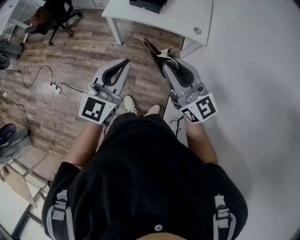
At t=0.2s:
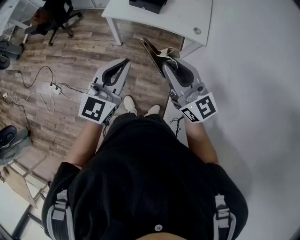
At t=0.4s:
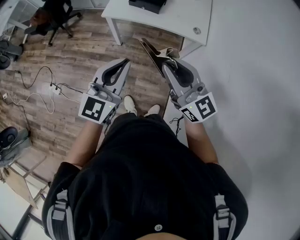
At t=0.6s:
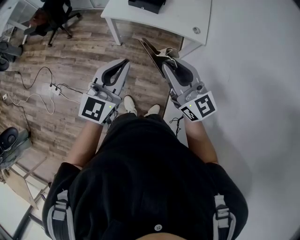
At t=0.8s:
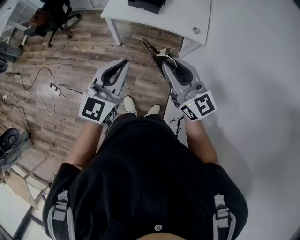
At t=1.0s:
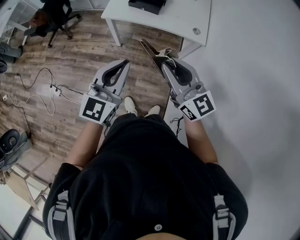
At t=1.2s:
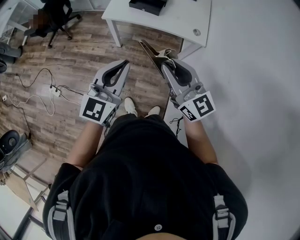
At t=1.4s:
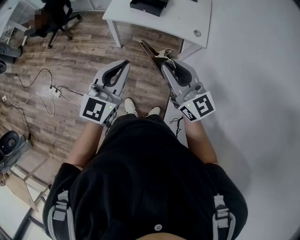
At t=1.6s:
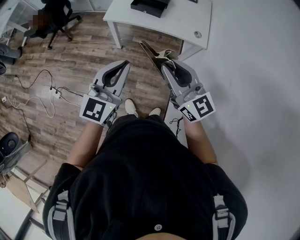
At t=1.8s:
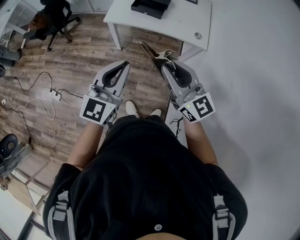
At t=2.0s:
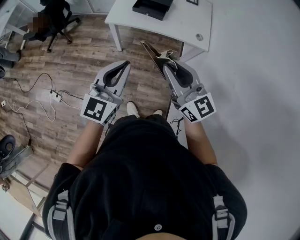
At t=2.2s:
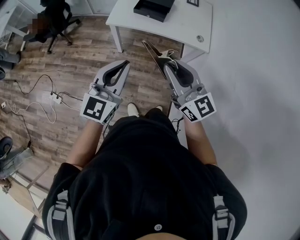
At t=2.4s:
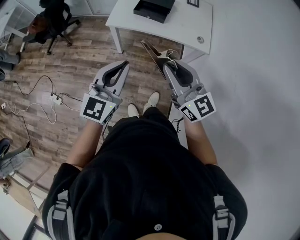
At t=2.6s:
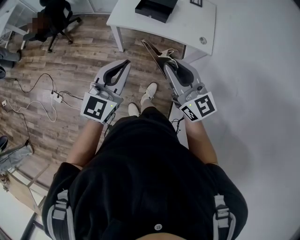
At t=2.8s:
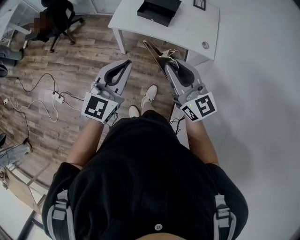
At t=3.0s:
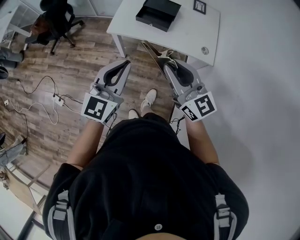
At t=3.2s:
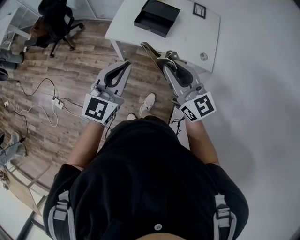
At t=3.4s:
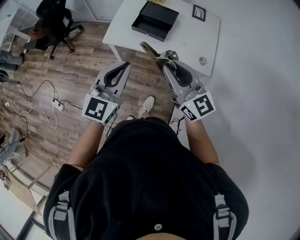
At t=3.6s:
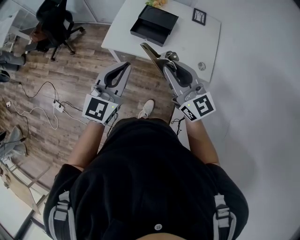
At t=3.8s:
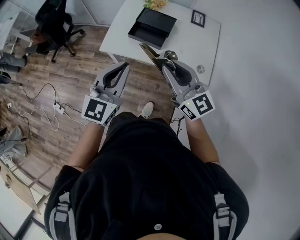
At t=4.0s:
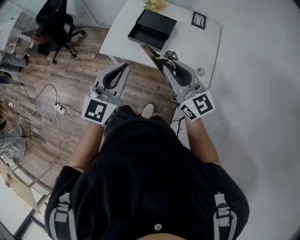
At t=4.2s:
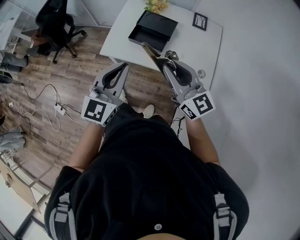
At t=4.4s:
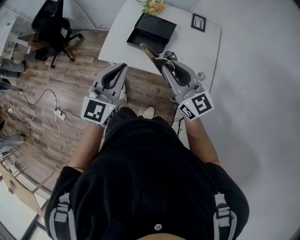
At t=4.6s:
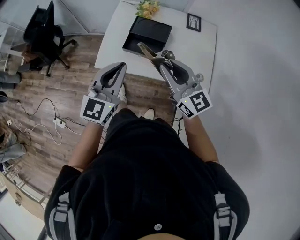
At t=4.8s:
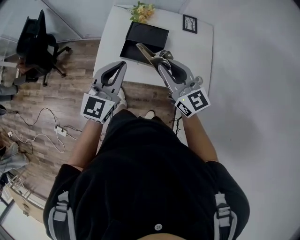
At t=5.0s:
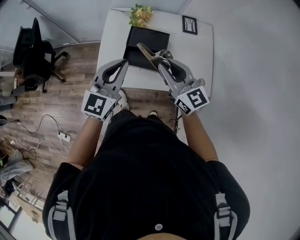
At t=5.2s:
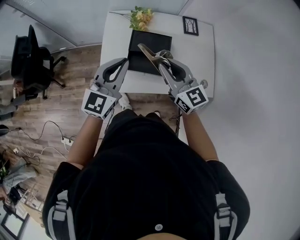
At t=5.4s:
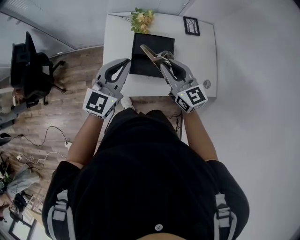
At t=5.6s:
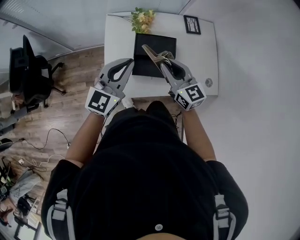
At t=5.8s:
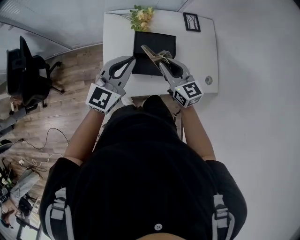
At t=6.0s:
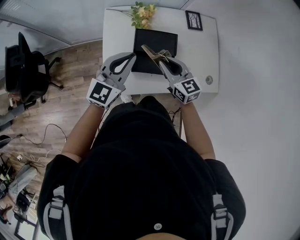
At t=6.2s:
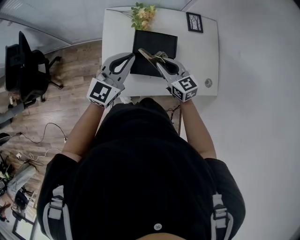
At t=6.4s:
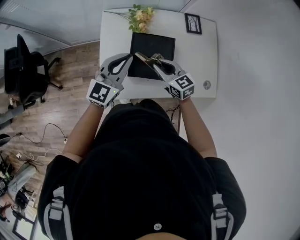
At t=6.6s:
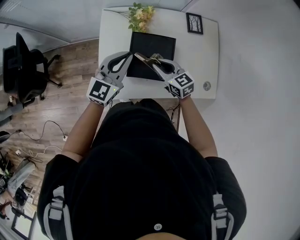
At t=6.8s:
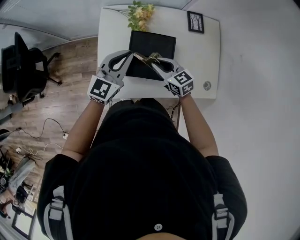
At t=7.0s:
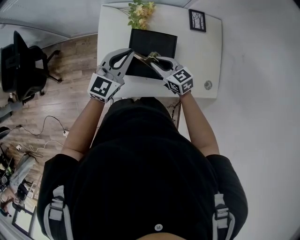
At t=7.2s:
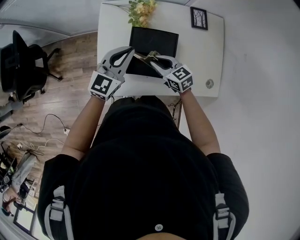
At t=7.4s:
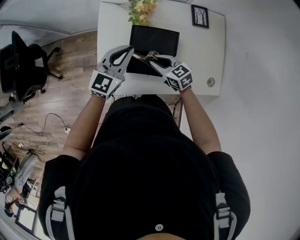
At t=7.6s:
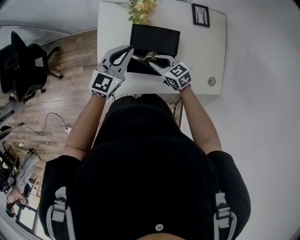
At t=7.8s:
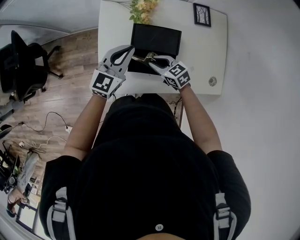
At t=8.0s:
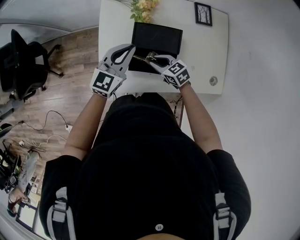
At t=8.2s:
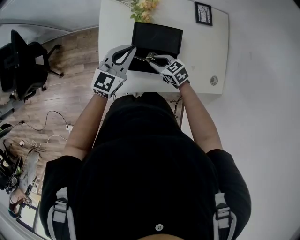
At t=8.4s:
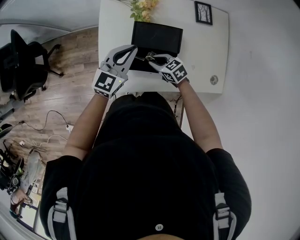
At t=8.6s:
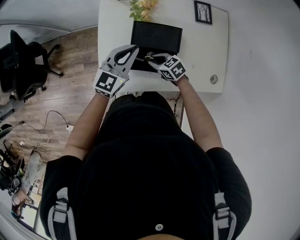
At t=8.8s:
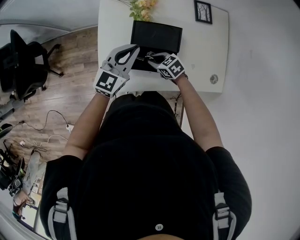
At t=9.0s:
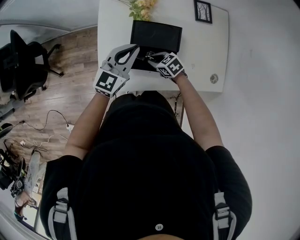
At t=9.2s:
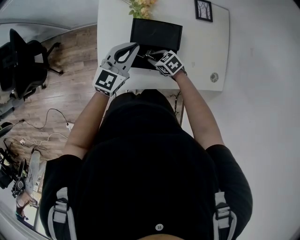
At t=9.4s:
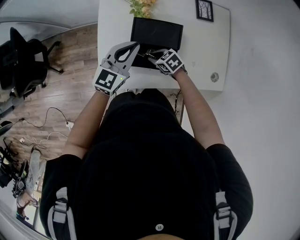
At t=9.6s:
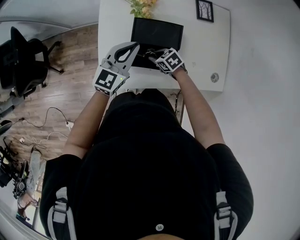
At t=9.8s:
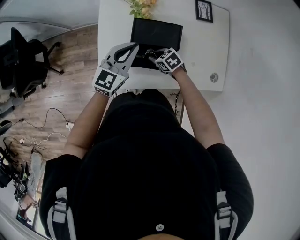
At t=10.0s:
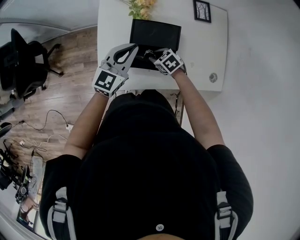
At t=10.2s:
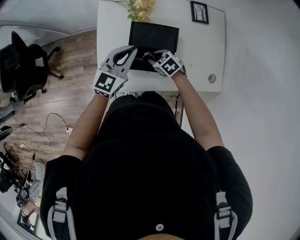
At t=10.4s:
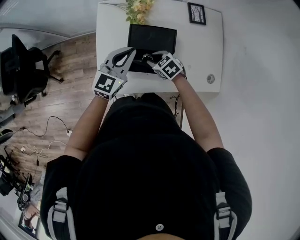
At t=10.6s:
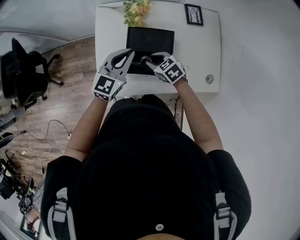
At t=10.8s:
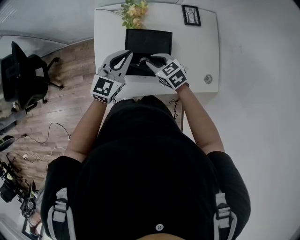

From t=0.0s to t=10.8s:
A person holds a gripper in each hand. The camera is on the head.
From t=0.0s to t=1.6s: The grippers stay close to where they were, moving slightly.
From t=1.6s to t=3.0s: The two grippers go roughly 15 cm forward.
From t=3.0s to t=4.6s: Both grippers move forward, about 20 cm.
From t=4.6s to t=6.2s: The right gripper travels forward, downward and to the left by some 30 cm, and turns by some 30 degrees; the left gripper travels forward by about 25 cm, and turns by roughly 20 degrees.
From t=6.2s to t=7.8s: The right gripper travels downward by approximately 15 cm, and rotates roughly 20 degrees, while the left gripper goes roughly 10 cm downward.
From t=7.8s to t=9.2s: The right gripper shifts about 5 cm downward.
From t=9.2s to t=10.8s: The right gripper is displaced upward by some 15 cm.

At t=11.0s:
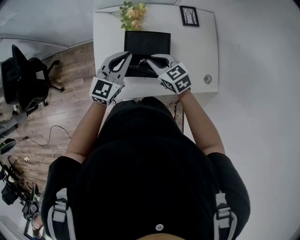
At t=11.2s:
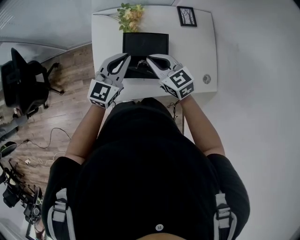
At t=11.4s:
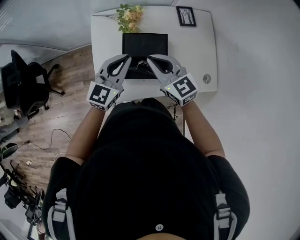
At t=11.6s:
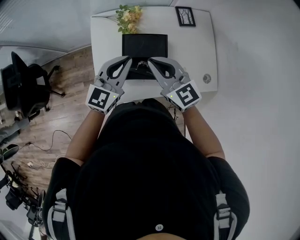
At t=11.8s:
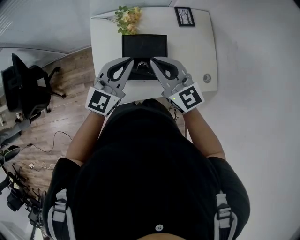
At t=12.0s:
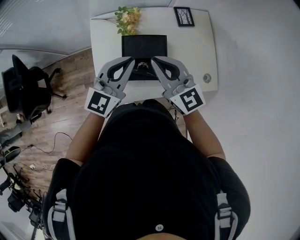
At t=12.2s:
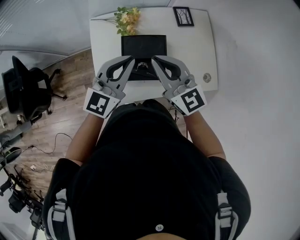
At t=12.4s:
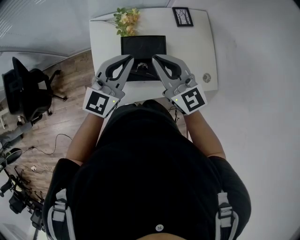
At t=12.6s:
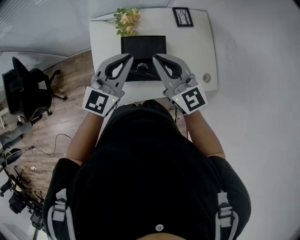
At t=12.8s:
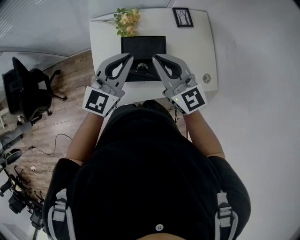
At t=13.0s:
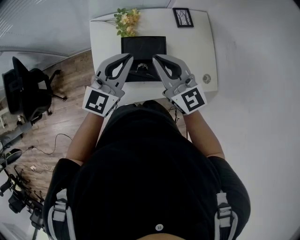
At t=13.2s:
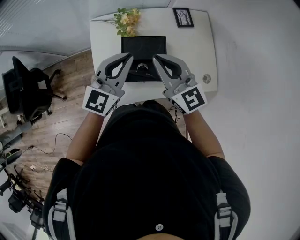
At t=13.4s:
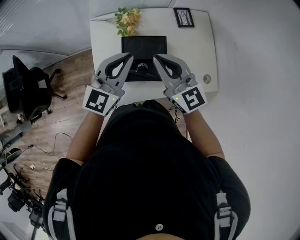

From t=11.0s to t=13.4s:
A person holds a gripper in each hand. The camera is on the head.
From t=11.0s to t=12.2s: The left gripper goes some 10 cm upward; the right gripper shifts approximately 20 cm upward, and angles its fingers upward, by about 30 degrees.
From t=12.2s to t=13.4s: There are only small adjustments of the grippers.

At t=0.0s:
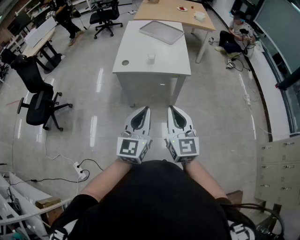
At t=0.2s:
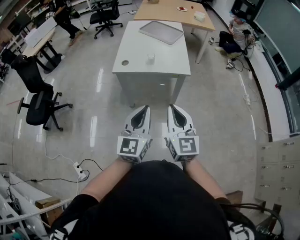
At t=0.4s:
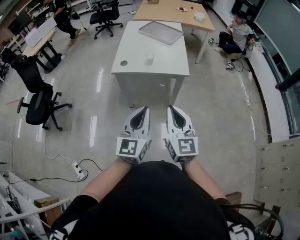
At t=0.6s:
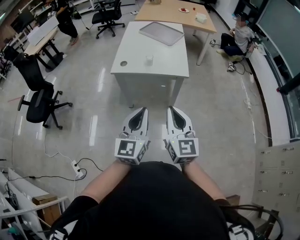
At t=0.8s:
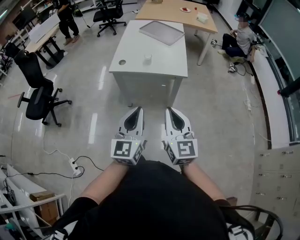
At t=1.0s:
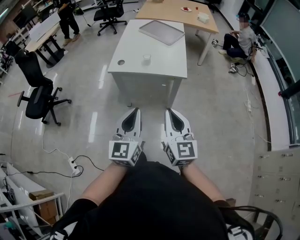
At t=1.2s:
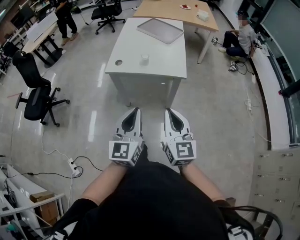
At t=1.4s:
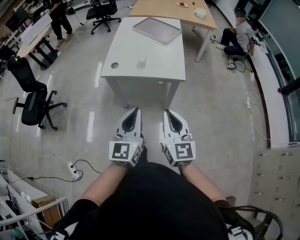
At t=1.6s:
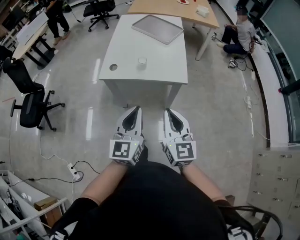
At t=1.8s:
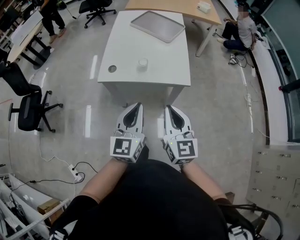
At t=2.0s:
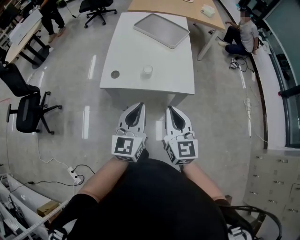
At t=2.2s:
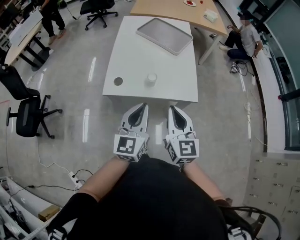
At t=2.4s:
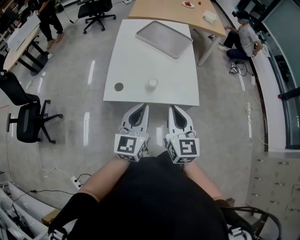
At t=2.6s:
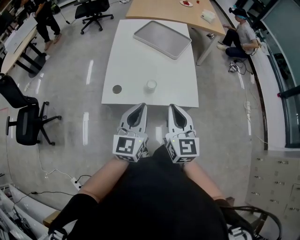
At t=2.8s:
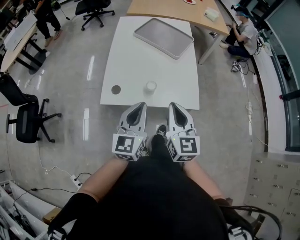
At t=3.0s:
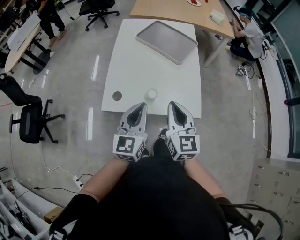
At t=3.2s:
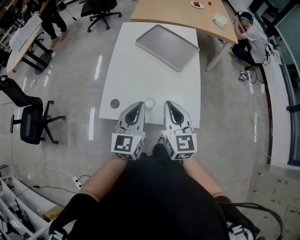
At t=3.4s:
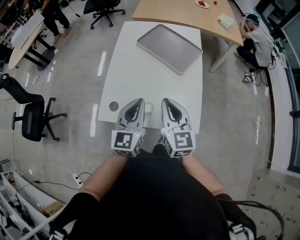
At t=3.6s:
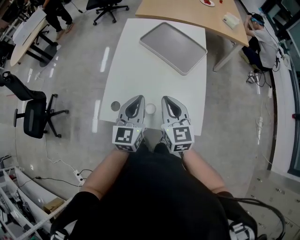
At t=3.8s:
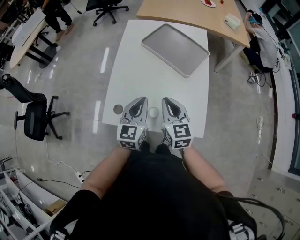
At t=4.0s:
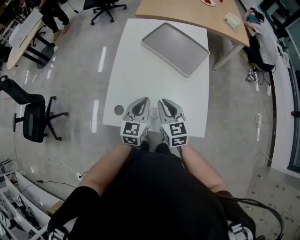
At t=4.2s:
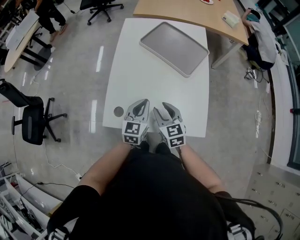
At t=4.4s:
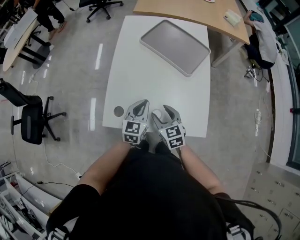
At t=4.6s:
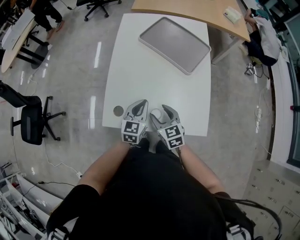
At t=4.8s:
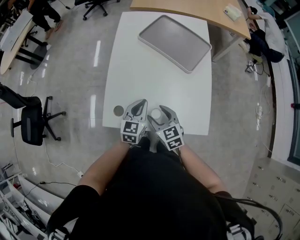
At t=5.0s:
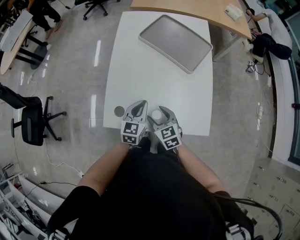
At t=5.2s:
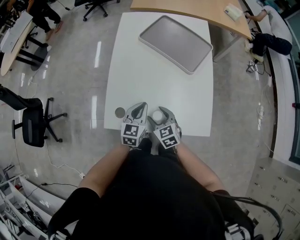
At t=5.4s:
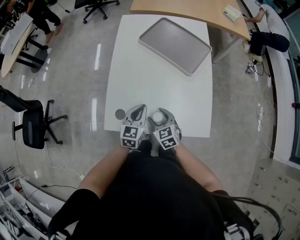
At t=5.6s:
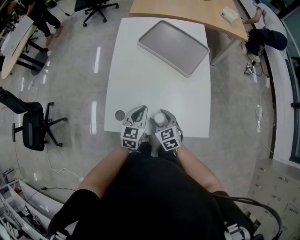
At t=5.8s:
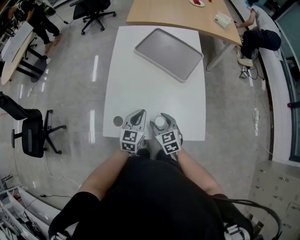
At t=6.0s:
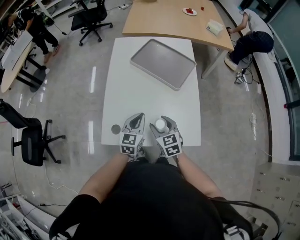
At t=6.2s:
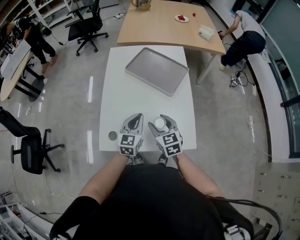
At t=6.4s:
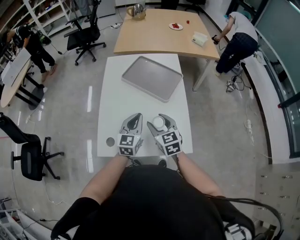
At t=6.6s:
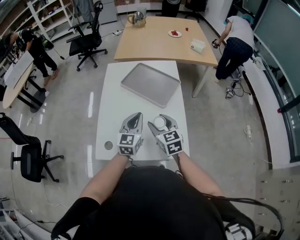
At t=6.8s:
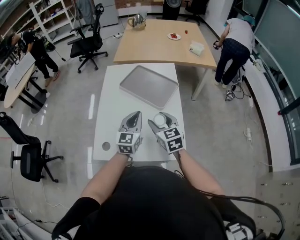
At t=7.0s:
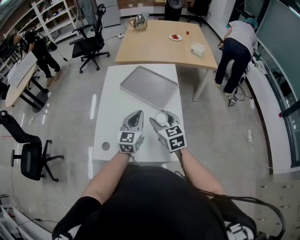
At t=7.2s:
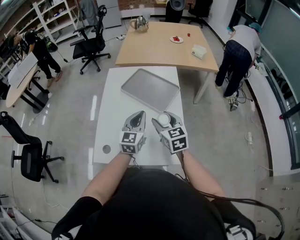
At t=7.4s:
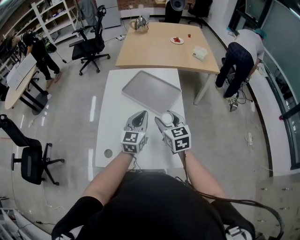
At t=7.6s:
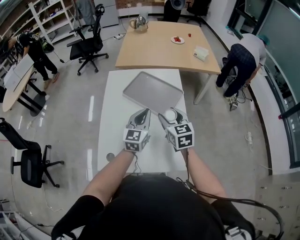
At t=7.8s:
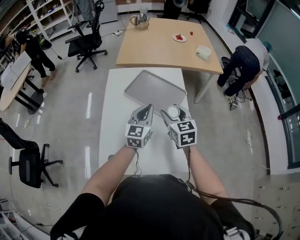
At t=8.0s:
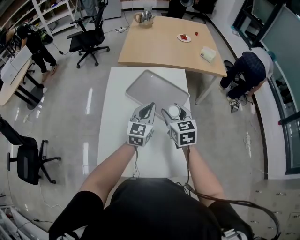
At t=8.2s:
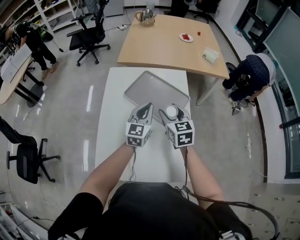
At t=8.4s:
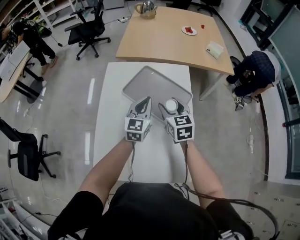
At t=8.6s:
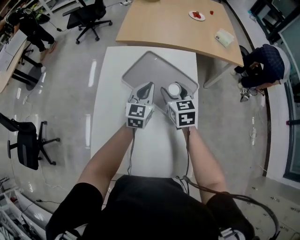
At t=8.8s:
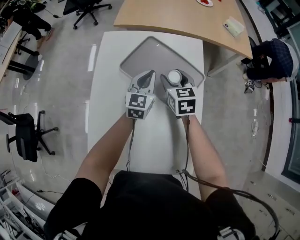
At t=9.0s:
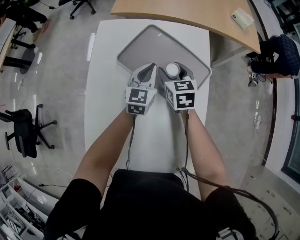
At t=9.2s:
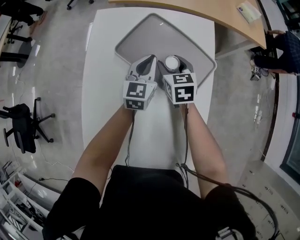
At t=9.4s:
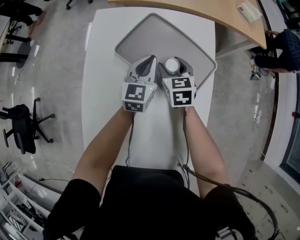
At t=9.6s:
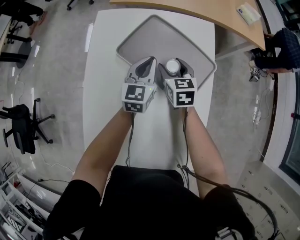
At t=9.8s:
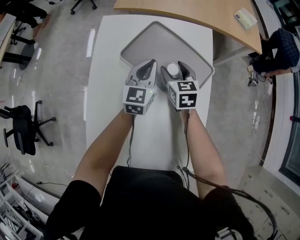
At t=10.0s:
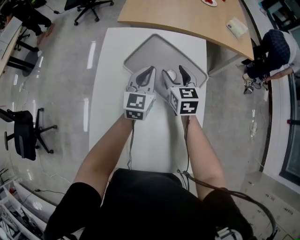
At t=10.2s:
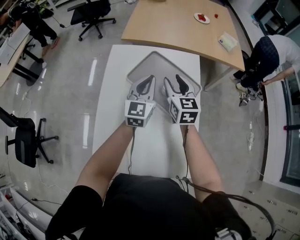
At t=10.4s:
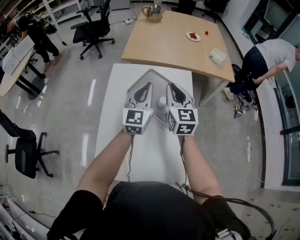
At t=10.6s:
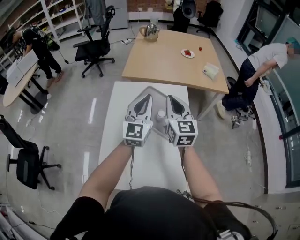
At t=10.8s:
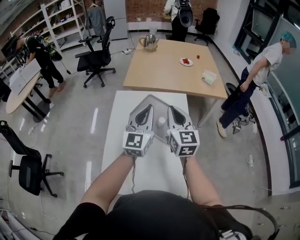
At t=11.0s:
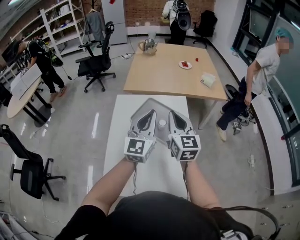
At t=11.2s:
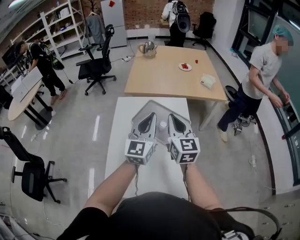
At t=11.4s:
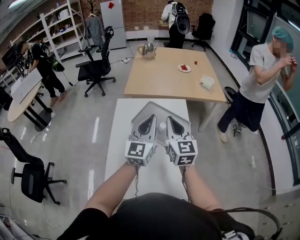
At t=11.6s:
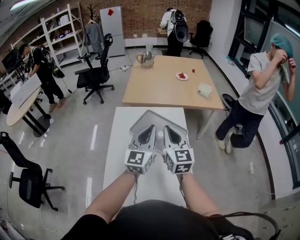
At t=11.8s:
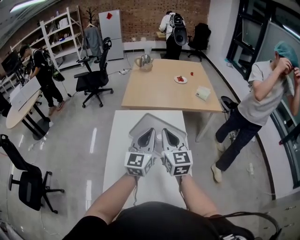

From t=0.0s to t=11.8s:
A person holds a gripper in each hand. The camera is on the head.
From t=0.0s to t=1.4s: The right gripper is displaced forward and to the right by some 10 cm, while the left gripper travels forward by approximately 10 cm.
From t=1.4s to t=3.0s: The two grippers go approximately 35 cm forward.
From t=3.0s to t=4.4s: The left gripper shifts some 25 cm forward and downward. Meanwhile the right gripper moves downward and forward, some 25 cm, changes its angle by roughly 30 degrees, and opens.
From t=4.4s to t=6.0s: The right gripper reaches some 5 cm downward, then returns.
From t=6.0s to t=7.4s: Both grippers move upward, to the right and forward, some 20 cm.
From t=7.4s to t=8.8s: The two grippers go some 30 cm forward and downward.
From t=8.8s to t=10.4s: Both grippers move upward, about 20 cm. The right gripper swivels about 30 degrees, and closes its fingers.
From t=10.4s to t=11.8s: Both grippers move backward and upward, approximately 15 cm.
